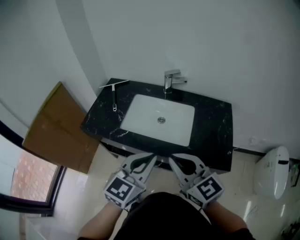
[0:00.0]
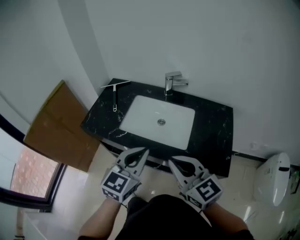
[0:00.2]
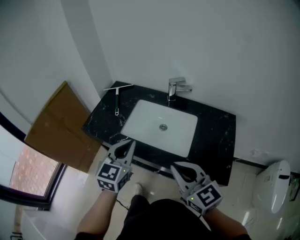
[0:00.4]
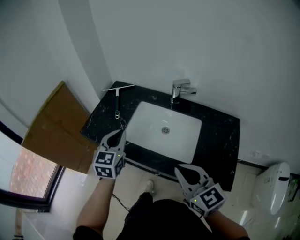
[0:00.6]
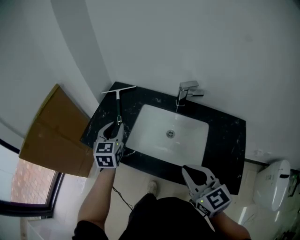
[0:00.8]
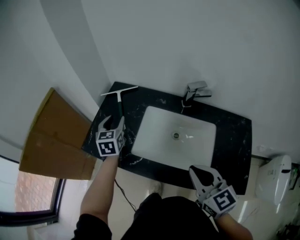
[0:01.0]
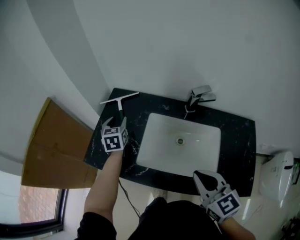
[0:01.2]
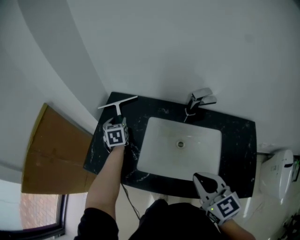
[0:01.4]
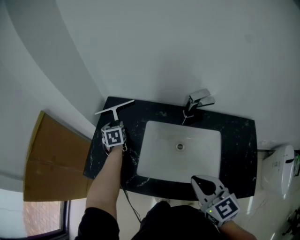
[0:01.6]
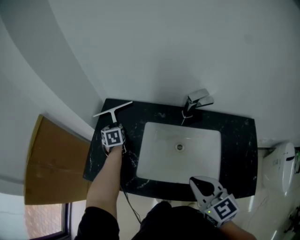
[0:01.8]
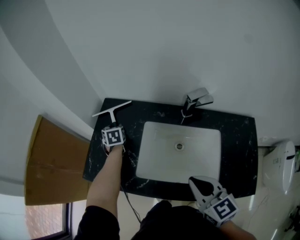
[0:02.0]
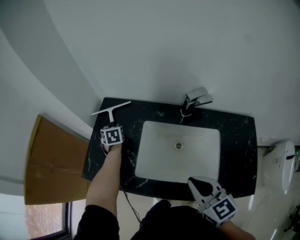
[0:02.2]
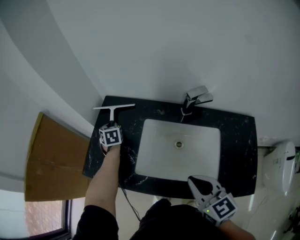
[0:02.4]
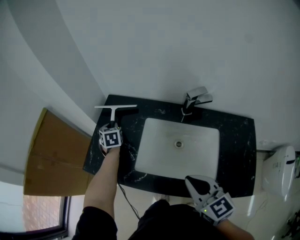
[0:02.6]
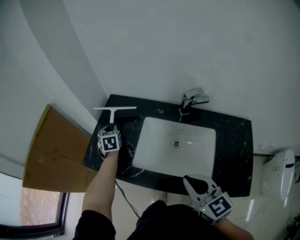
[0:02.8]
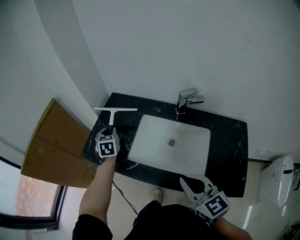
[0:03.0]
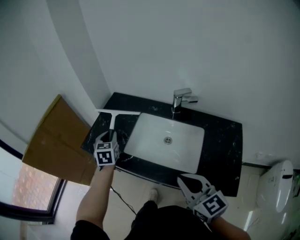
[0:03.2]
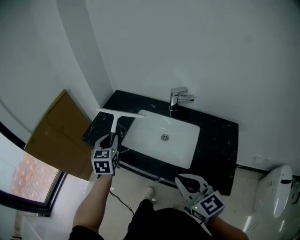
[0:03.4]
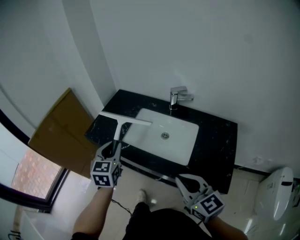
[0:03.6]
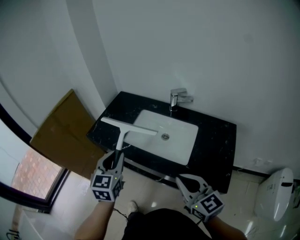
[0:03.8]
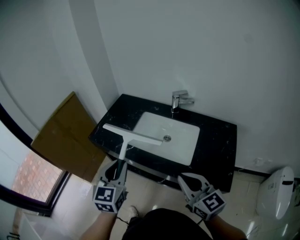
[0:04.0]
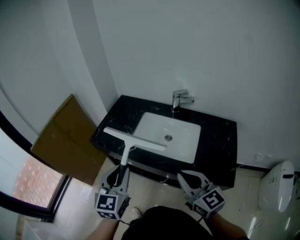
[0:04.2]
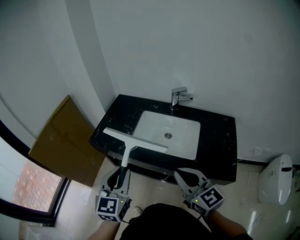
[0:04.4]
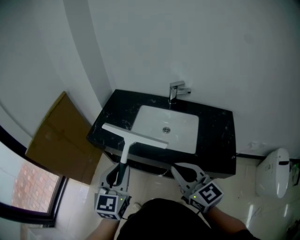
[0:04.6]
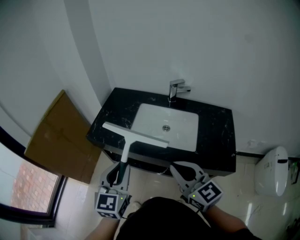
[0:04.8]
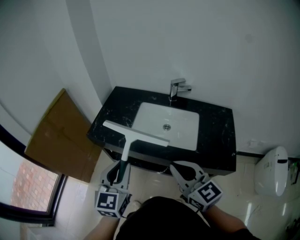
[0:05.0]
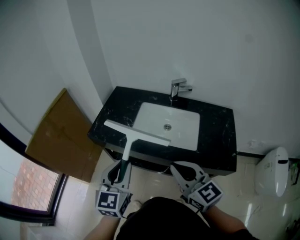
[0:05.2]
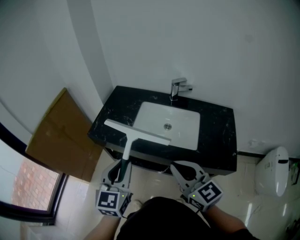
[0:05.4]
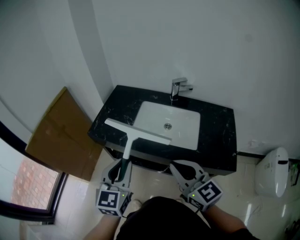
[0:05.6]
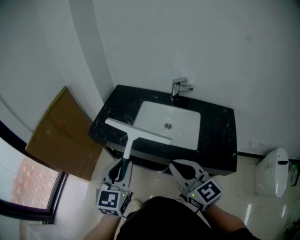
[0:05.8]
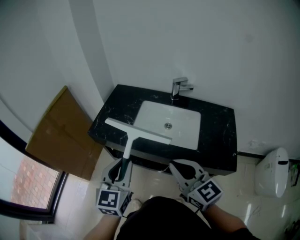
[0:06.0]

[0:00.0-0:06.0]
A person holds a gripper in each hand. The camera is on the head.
0:00.0 to 0:01.6: The left gripper shifts some 60 cm forward and downward, swivels roughly 50 degrees, and opens, while the right gripper is displaced forward by approximately 20 cm, and rotates roughly 20 degrees.
0:01.6 to 0:03.0: The right gripper moves backward, roughly 10 cm, while the left gripper shifts some 15 cm backward and upward, and closes its fingers.
0:03.0 to 0:04.4: The left gripper moves backward, some 40 cm, and rotates approximately 30 degrees; the right gripper shifts about 10 cm backward.
0:04.4 to 0:06.0: There are only small adjustments of the grippers.

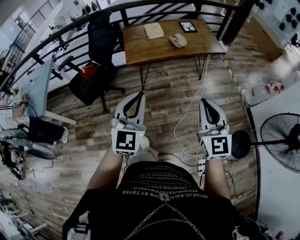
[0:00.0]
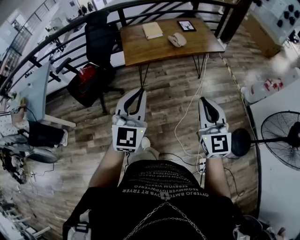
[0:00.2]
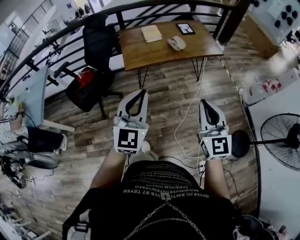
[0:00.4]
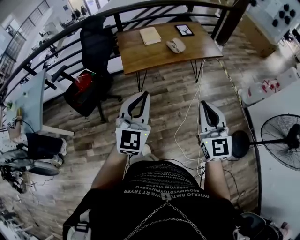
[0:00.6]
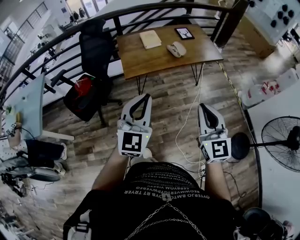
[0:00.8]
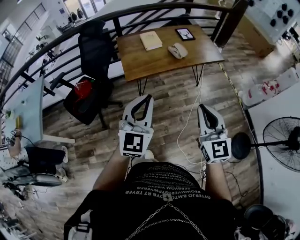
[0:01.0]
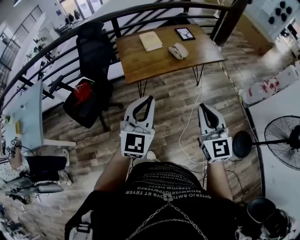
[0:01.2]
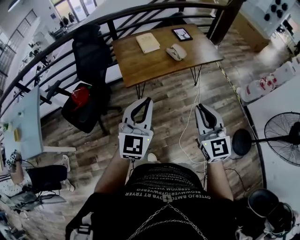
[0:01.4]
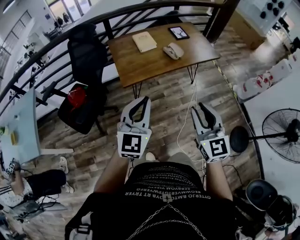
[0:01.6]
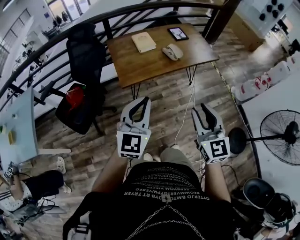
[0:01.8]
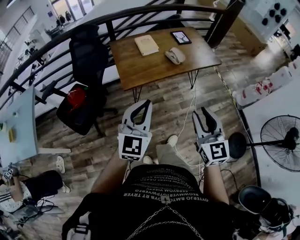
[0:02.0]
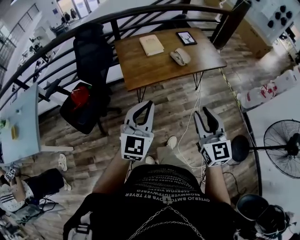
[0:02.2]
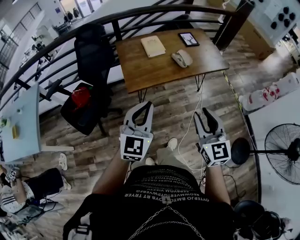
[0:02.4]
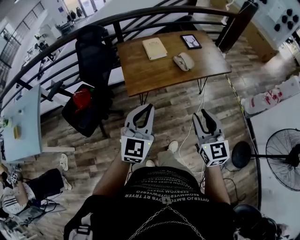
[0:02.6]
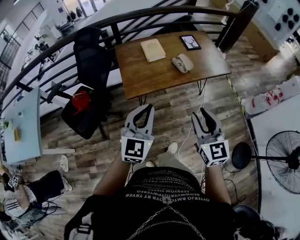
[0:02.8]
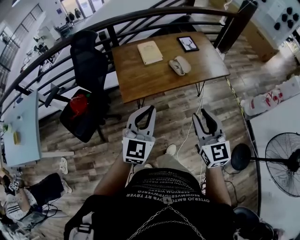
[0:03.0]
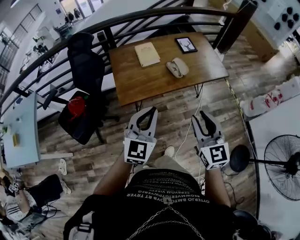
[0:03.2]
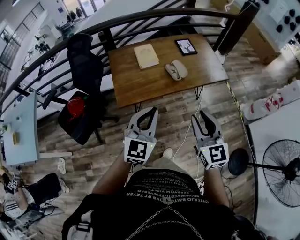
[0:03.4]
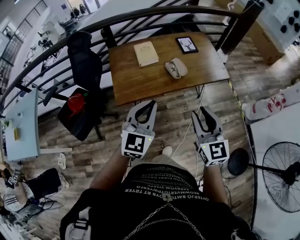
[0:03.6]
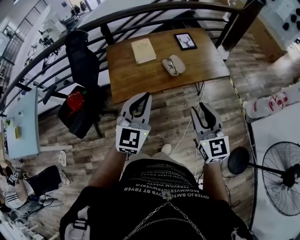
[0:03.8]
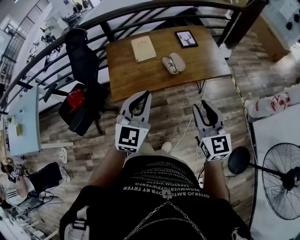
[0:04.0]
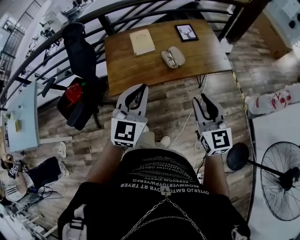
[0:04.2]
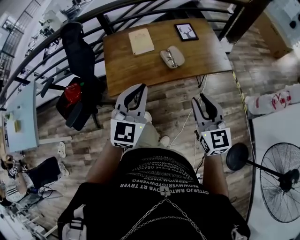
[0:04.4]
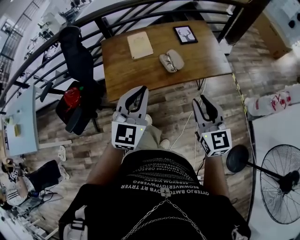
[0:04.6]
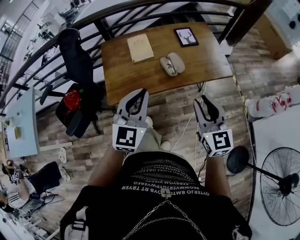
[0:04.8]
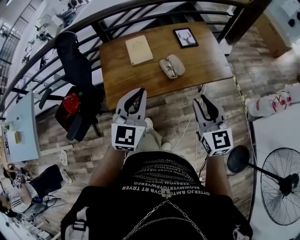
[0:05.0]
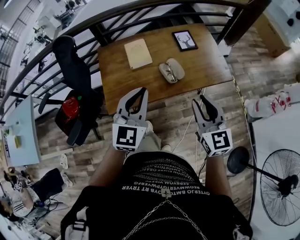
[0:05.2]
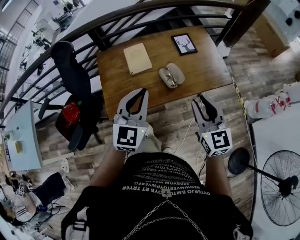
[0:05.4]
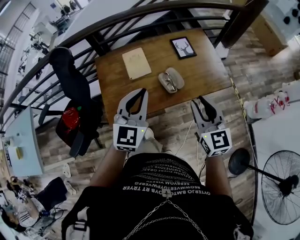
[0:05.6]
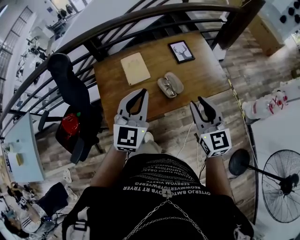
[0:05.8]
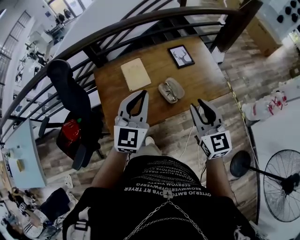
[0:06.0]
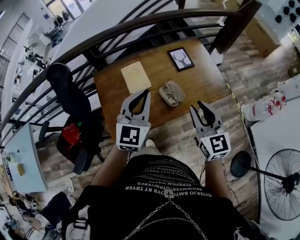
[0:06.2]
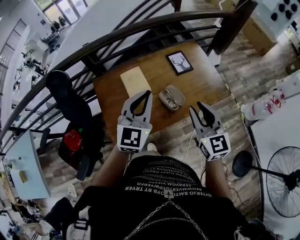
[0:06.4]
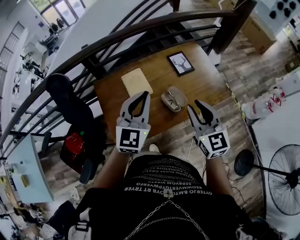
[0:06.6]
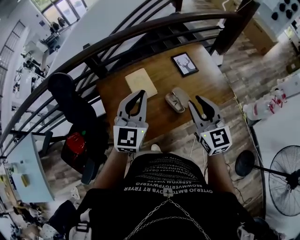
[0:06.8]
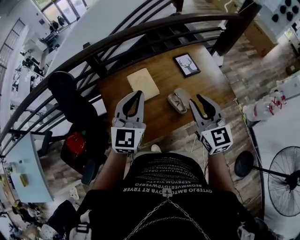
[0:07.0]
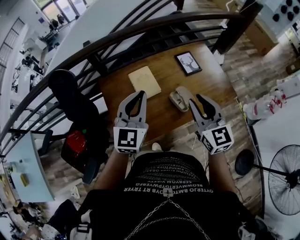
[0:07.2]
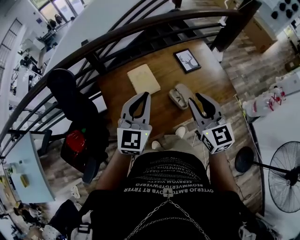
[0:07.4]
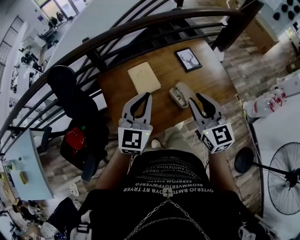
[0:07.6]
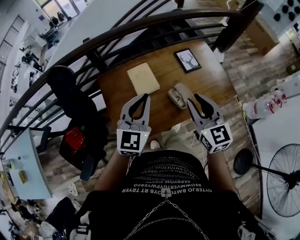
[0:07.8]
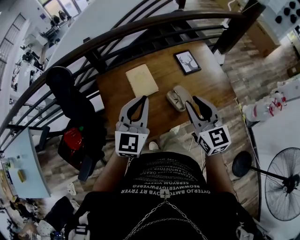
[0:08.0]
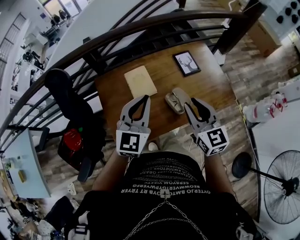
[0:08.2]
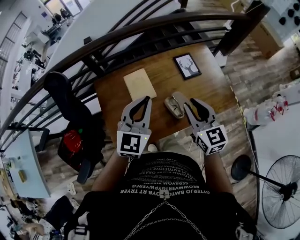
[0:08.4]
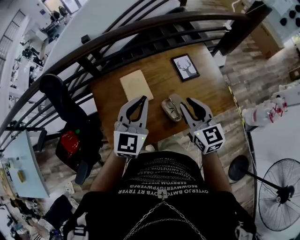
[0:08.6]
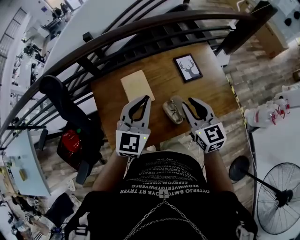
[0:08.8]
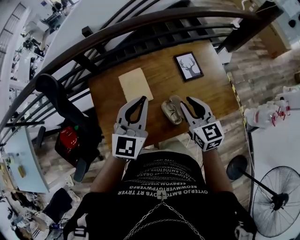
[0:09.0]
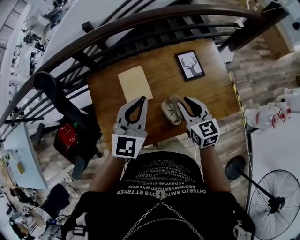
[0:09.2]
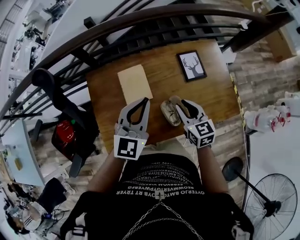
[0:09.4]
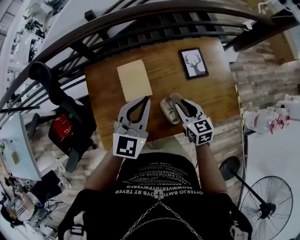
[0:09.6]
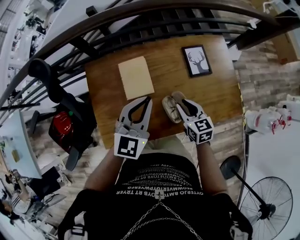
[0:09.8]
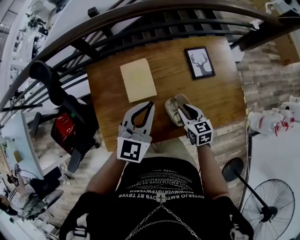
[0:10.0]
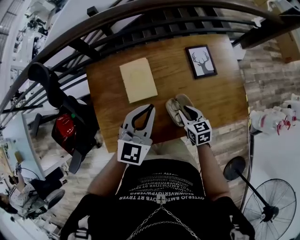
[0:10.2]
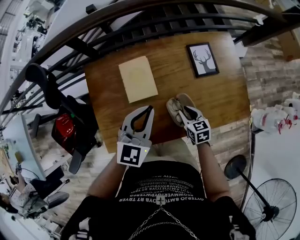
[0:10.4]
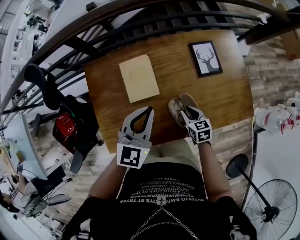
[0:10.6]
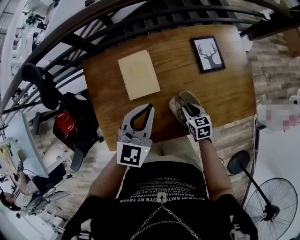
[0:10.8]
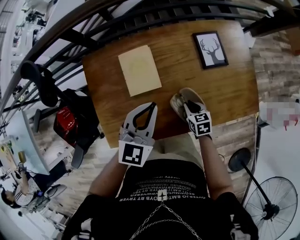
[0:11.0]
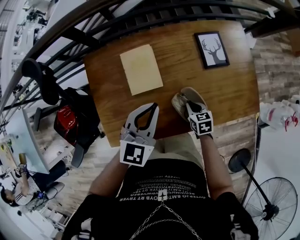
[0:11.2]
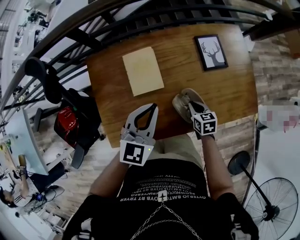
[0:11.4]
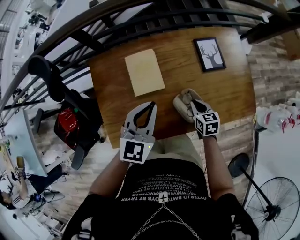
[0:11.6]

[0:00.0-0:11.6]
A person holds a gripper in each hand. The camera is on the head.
0:00.0 to 0:01.4: Both grippers move forward and to the left, approximately 20 cm.
0:01.4 to 0:02.8: The two grippers go approximately 10 cm forward. The right gripper opens its fingers.
0:02.8 to 0:04.4: The right gripper heads to the right and forward, covering approximately 20 cm. Meanwhile the left gripper travels forward and to the right by roughly 20 cm.
0:04.4 to 0:05.8: The grippers both shift forward by about 20 cm.
0:05.8 to 0:07.2: The two grippers go some 15 cm to the left and forward.
0:07.2 to 0:08.8: The left gripper is displaced forward and to the right by roughly 10 cm. Meanwhile the right gripper heads forward and downward, covering about 15 cm.
0:08.8 to 0:10.2: The left gripper heads downward, covering some 10 cm, while the right gripper travels downward by about 25 cm, and changes its angle by about 30 degrees.

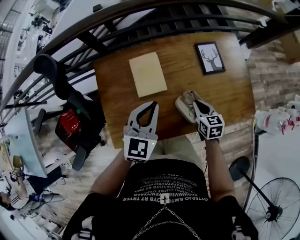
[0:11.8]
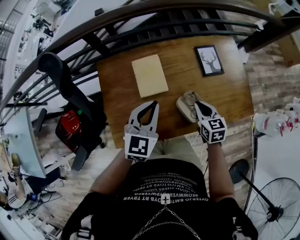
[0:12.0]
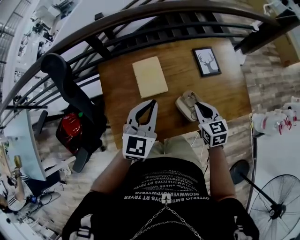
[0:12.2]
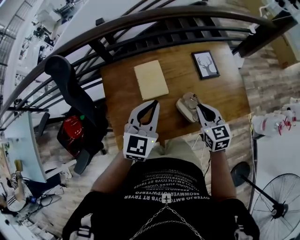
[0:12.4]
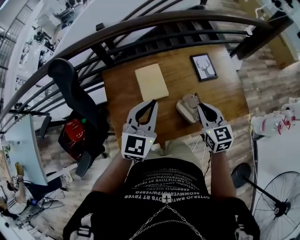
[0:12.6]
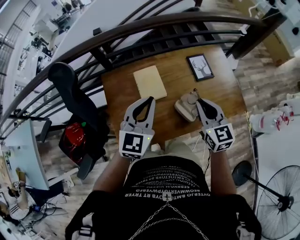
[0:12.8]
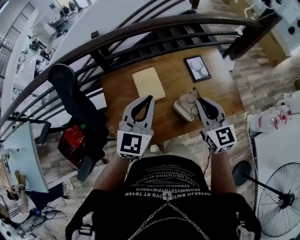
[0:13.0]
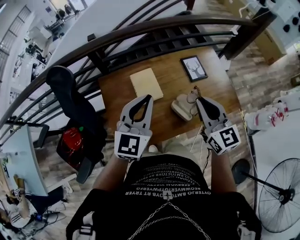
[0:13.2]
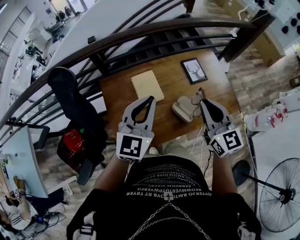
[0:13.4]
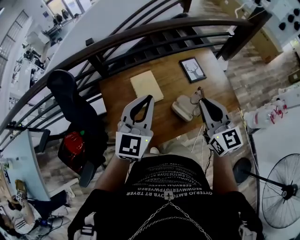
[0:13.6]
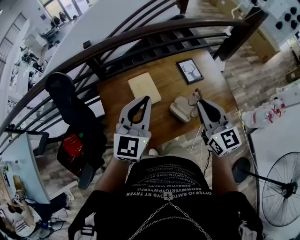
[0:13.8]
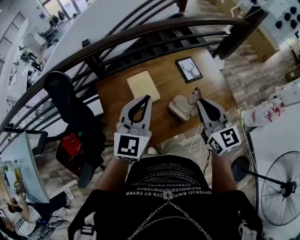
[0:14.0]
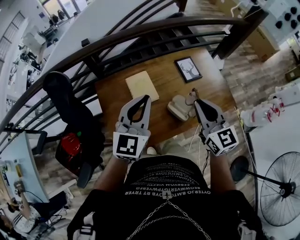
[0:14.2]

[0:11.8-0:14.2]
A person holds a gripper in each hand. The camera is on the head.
0:11.8 to 0:13.0: The left gripper goes about 15 cm upward, while the right gripper is displaced upward by some 25 cm, and changes its angle by about 30 degrees.
0:13.0 to 0:14.2: The grippers make only small movements.

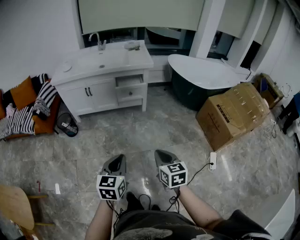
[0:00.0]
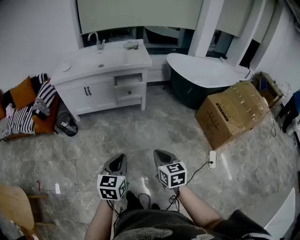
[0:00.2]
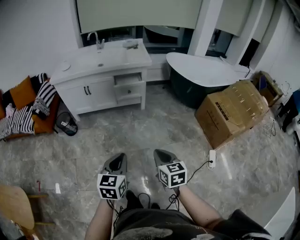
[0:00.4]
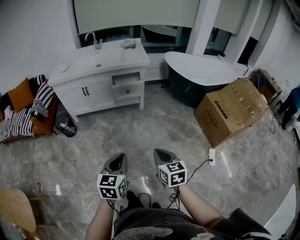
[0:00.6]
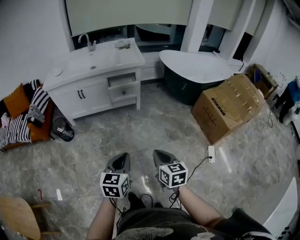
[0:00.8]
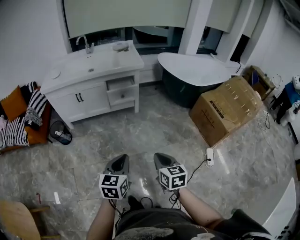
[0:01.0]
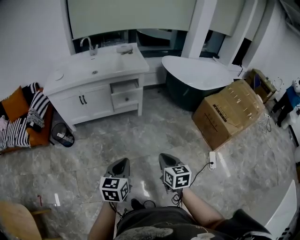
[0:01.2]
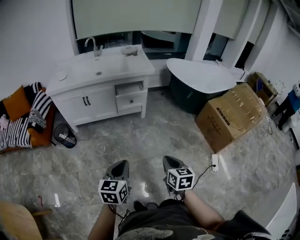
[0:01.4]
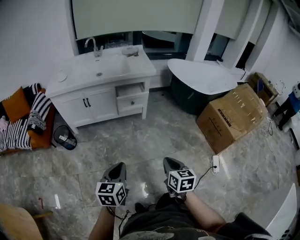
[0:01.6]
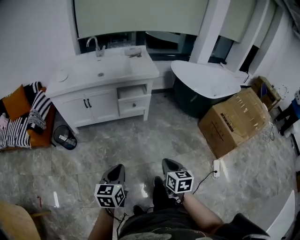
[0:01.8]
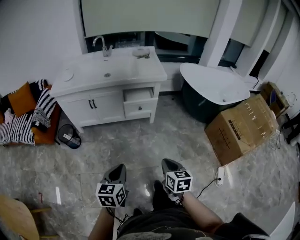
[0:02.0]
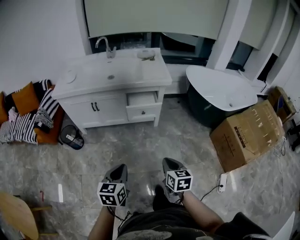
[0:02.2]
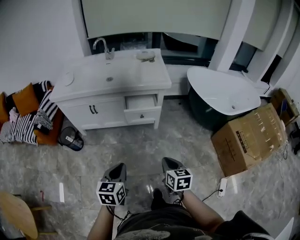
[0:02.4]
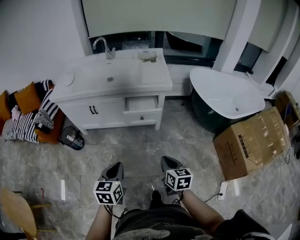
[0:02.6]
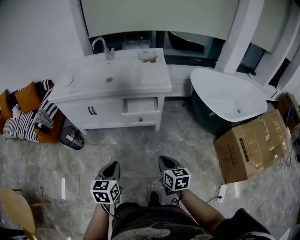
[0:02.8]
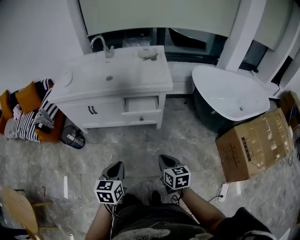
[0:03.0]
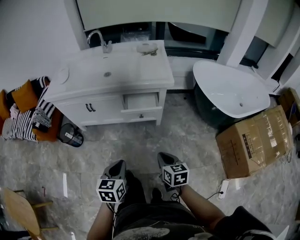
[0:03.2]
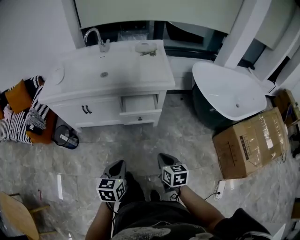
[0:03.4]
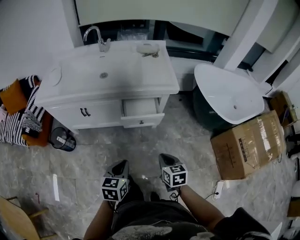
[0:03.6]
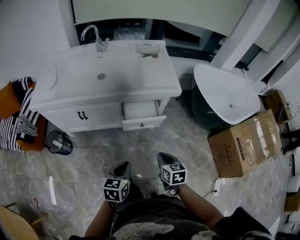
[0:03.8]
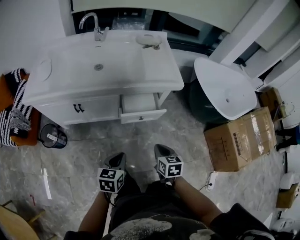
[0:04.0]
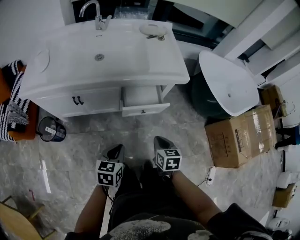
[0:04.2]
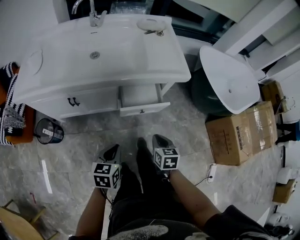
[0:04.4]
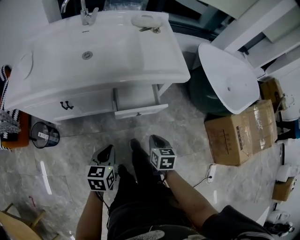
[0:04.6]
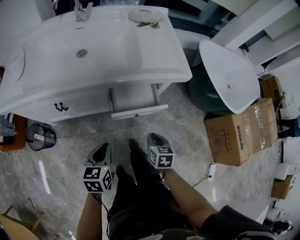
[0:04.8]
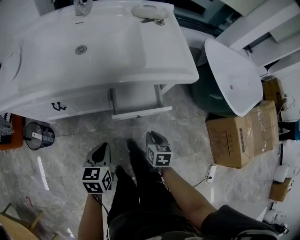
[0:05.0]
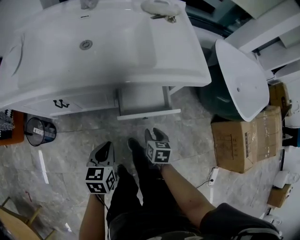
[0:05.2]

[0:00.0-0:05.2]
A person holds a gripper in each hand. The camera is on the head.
0:00.0 to 0:01.8: The left gripper heads forward and to the left, covering roughly 15 cm, while the right gripper travels forward by some 10 cm.
0:01.8 to 0:03.4: The two grippers go some 30 cm forward.
0:03.4 to 0:05.2: Both grippers travel together forward, downward and to the left, approximately 35 cm. The right gripper opens up.
